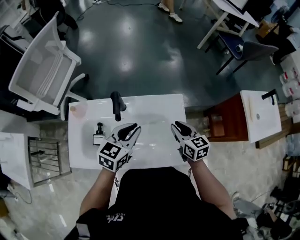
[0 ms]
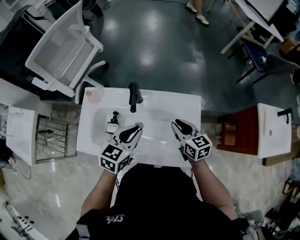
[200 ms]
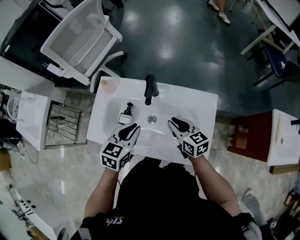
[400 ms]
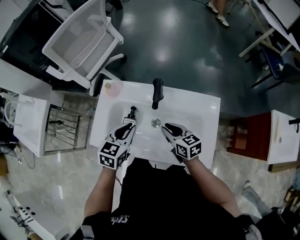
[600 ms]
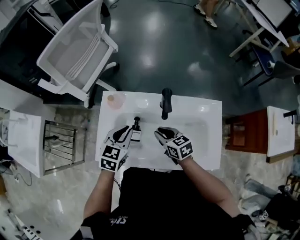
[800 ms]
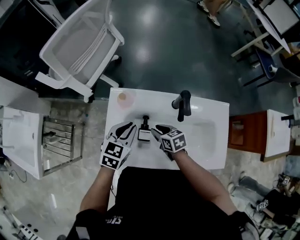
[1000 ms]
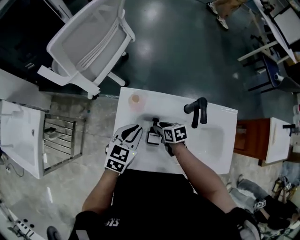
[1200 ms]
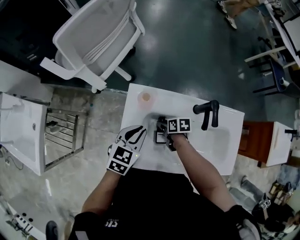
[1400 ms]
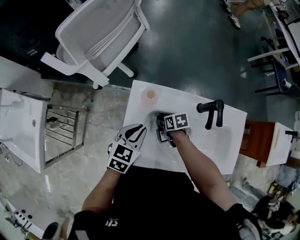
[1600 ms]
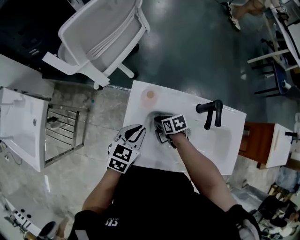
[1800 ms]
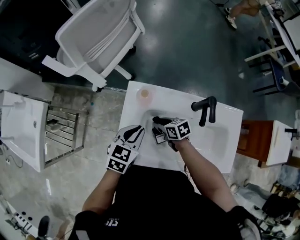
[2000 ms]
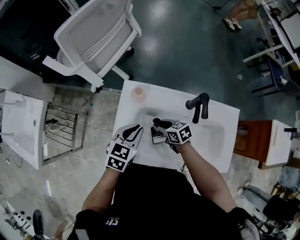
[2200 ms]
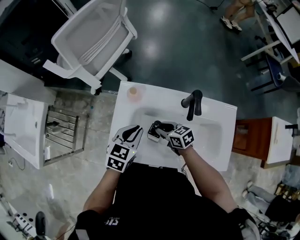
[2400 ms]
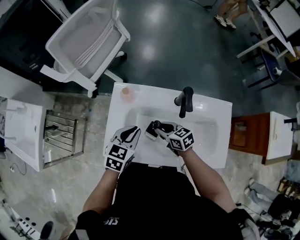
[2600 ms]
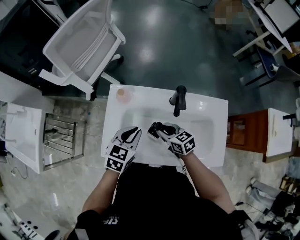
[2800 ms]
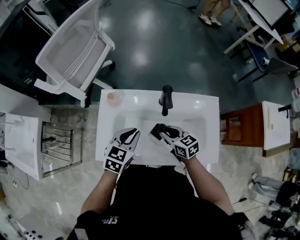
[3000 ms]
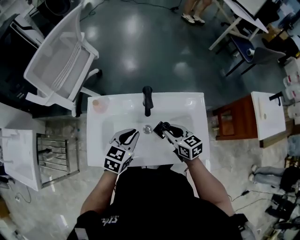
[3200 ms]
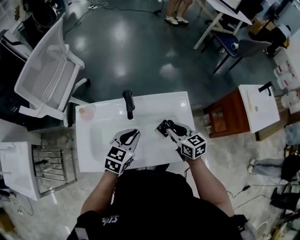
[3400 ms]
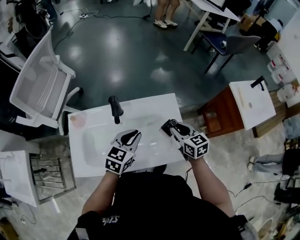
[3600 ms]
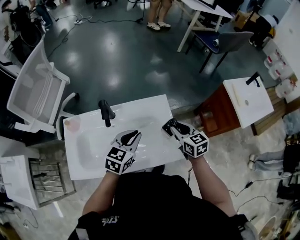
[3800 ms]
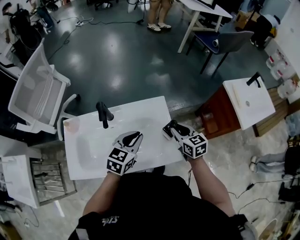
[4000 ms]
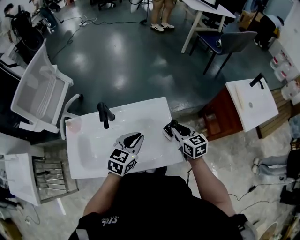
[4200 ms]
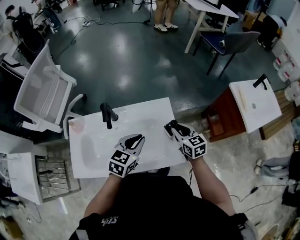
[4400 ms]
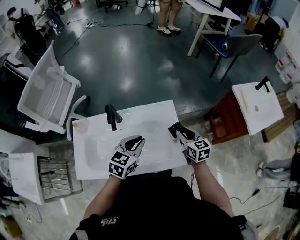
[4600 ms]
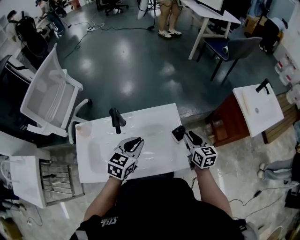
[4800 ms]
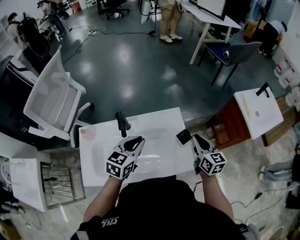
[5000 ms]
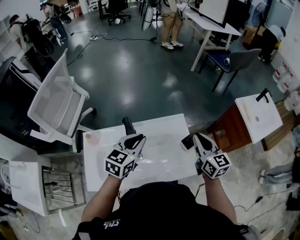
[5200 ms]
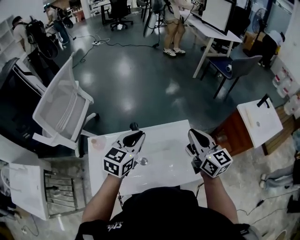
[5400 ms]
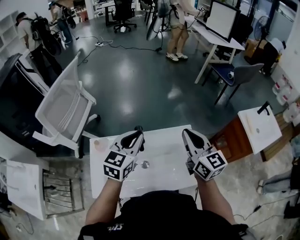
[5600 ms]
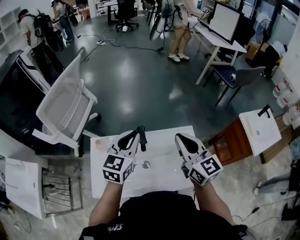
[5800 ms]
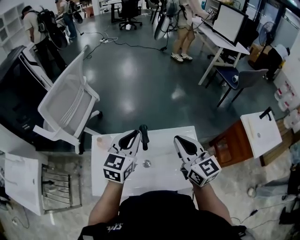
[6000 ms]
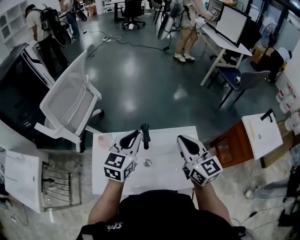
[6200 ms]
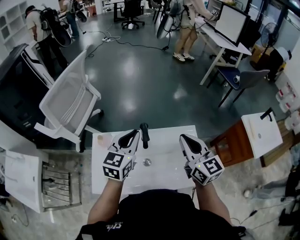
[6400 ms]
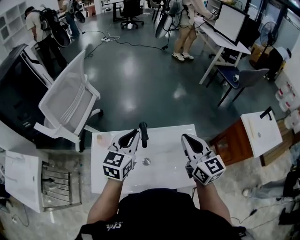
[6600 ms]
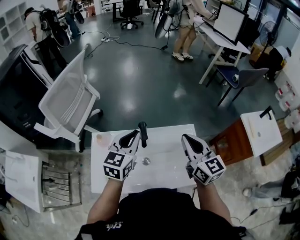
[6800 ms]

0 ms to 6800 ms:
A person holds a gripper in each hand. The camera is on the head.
0 ms to 1400 ms: The left gripper shifts by roughly 40 cm; the right gripper moves some 50 cm, and turns by approximately 40 degrees.
1400 ms to 2800 ms: The left gripper goes approximately 10 cm to the right and backward. The right gripper shifts some 15 cm upward, backward and to the right, and changes its angle by approximately 40 degrees.
2800 ms to 4000 ms: The left gripper changes place by some 35 cm, and turns by roughly 20 degrees. Meanwhile the right gripper ends up approximately 40 cm from where it was, and swivels approximately 40 degrees.
4000 ms to 5400 ms: The left gripper goes some 20 cm to the left and upward. The right gripper goes roughly 25 cm upward and to the left, and turns by roughly 20 degrees.
5400 ms to 6800 ms: Both grippers travel together to the left, some 10 cm.

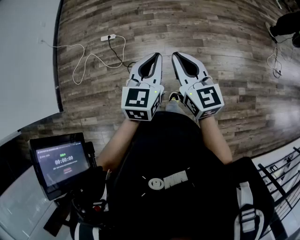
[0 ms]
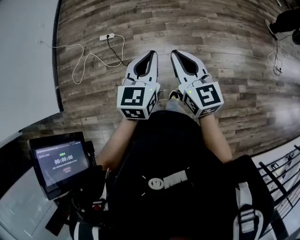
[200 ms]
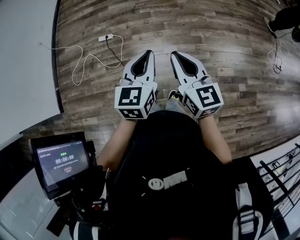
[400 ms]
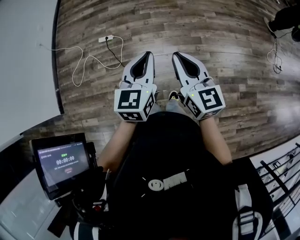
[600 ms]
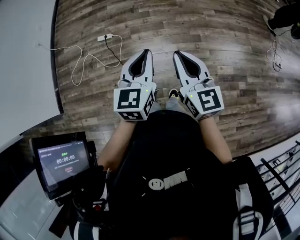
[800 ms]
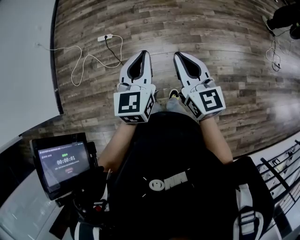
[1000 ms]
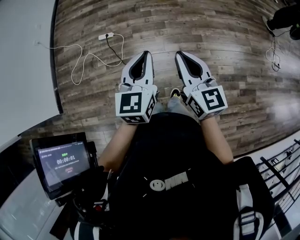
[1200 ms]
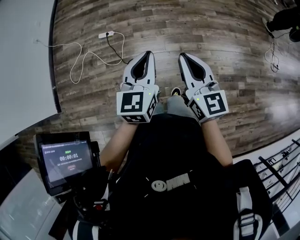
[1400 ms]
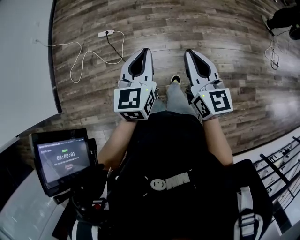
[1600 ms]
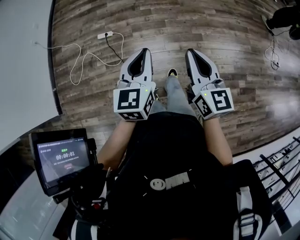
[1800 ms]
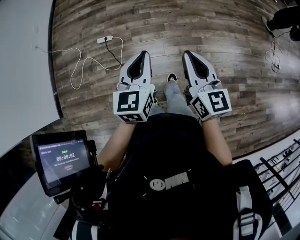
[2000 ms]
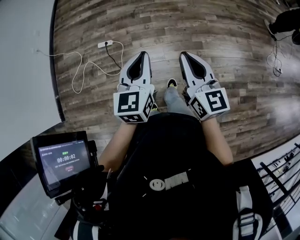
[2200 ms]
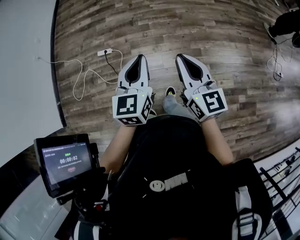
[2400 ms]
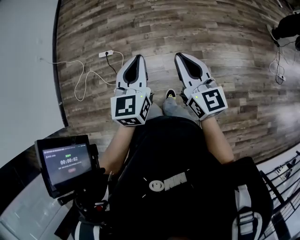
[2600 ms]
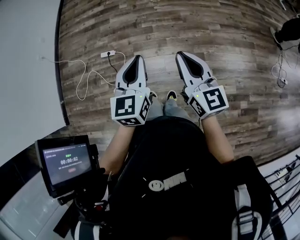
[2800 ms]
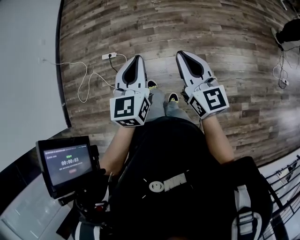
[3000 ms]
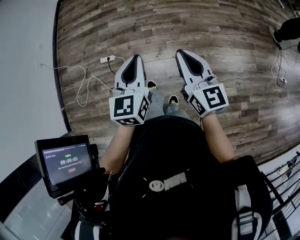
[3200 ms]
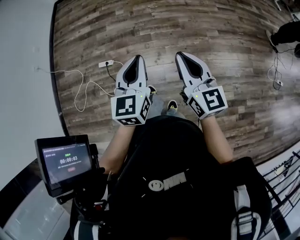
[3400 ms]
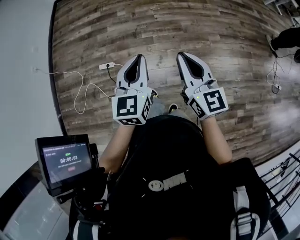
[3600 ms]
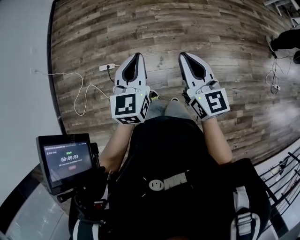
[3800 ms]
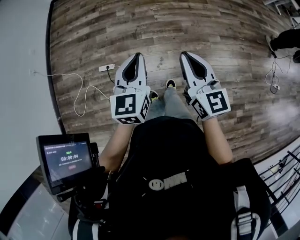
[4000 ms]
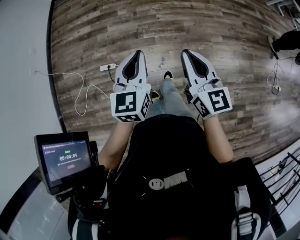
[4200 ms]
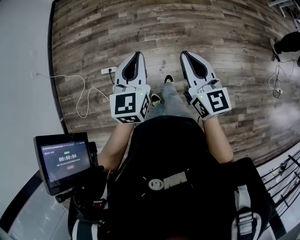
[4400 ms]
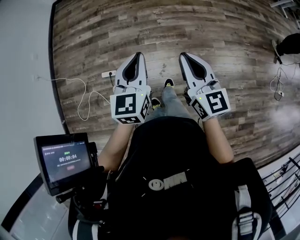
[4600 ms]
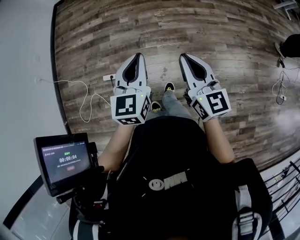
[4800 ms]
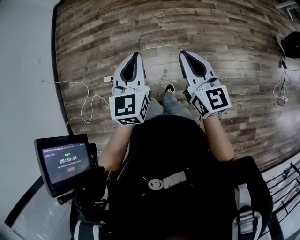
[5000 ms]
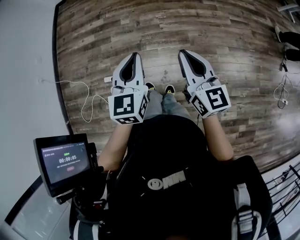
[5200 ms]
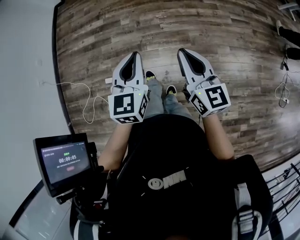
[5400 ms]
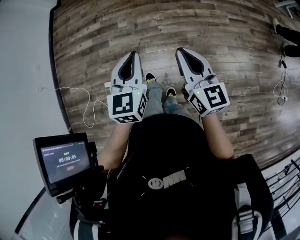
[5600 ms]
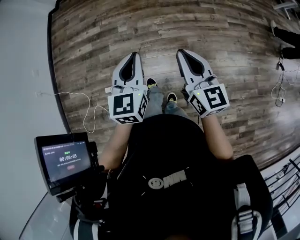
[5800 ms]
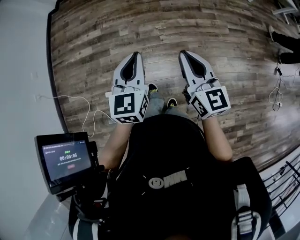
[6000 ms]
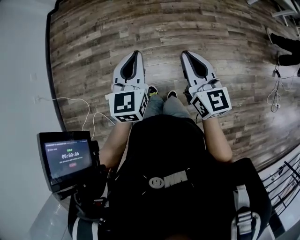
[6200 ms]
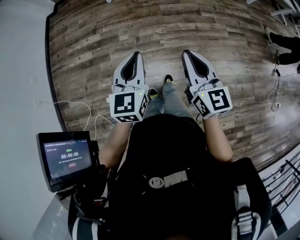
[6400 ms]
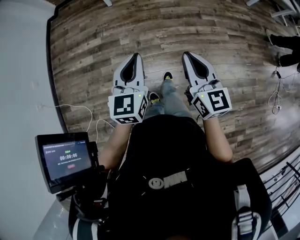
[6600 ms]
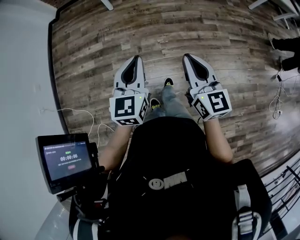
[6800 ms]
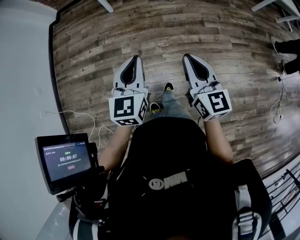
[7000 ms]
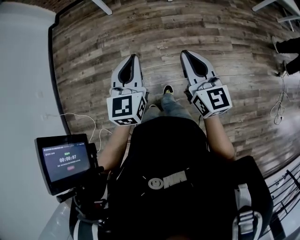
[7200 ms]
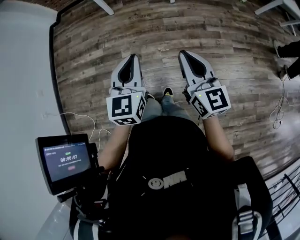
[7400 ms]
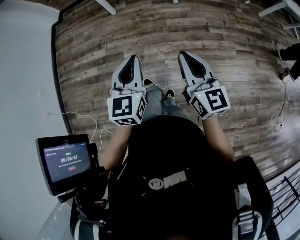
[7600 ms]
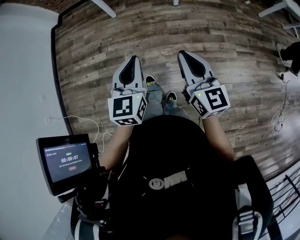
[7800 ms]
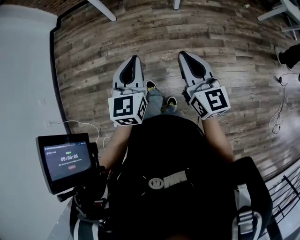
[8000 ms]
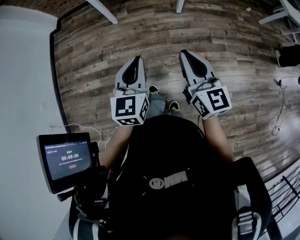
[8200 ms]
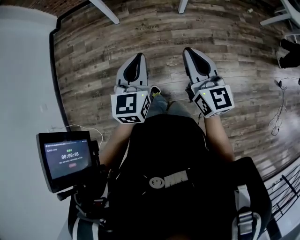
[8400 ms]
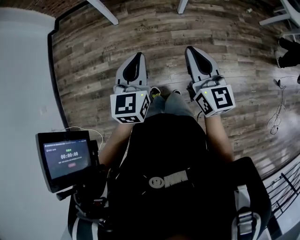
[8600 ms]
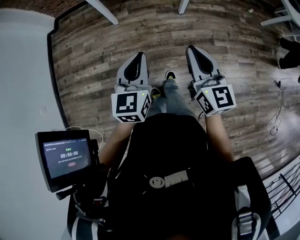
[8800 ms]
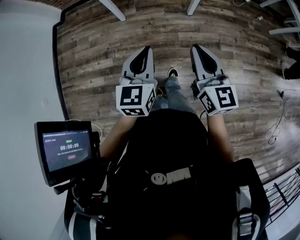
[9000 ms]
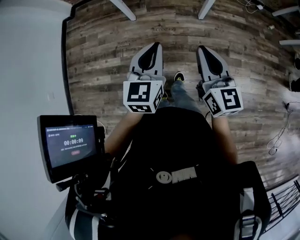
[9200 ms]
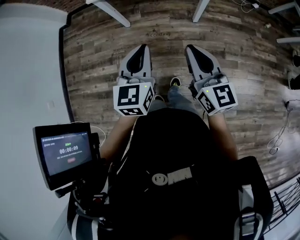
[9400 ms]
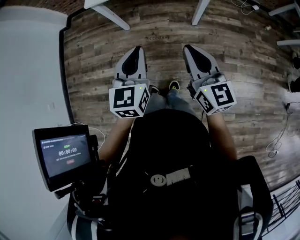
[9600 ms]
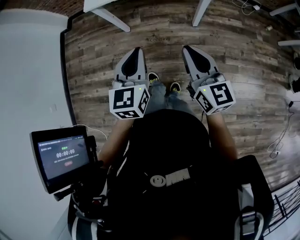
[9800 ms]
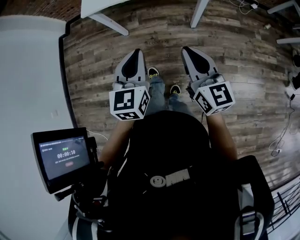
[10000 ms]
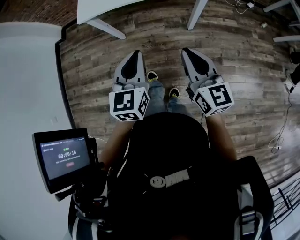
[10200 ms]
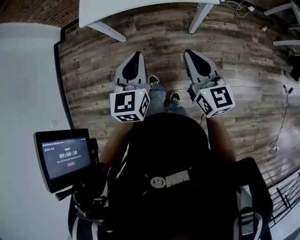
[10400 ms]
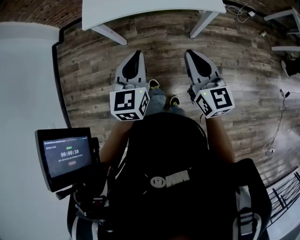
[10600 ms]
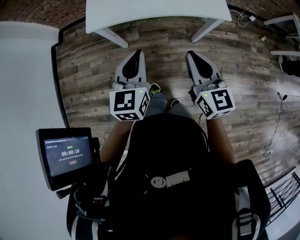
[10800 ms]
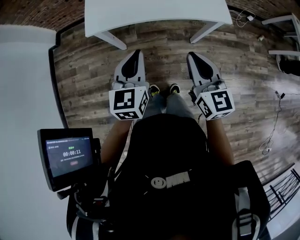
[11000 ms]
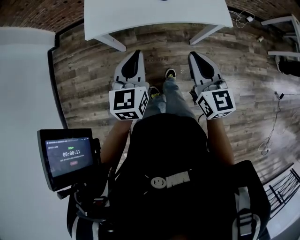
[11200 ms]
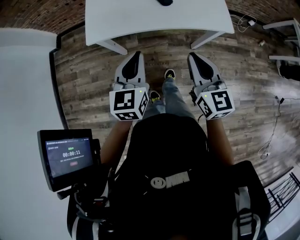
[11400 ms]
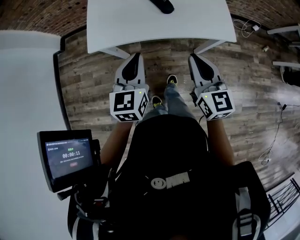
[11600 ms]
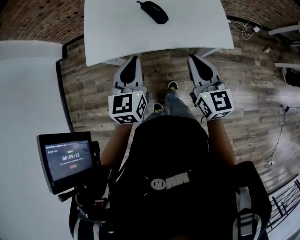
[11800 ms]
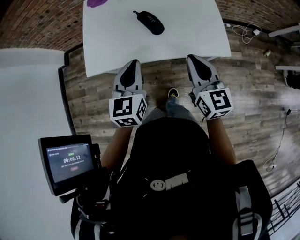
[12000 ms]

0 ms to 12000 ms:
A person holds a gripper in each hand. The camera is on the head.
0 ms to 1600 ms: The left gripper moves to the left, approximately 10 cm.
1600 ms to 3000 ms: Both grippers travel together forward and to the right, roughly 25 cm.
3000 ms to 4400 ms: Both grippers travel together forward, approximately 25 cm.
4400 ms to 6000 ms: The grippers both shift forward by some 30 cm.
6000 ms to 7600 ms: The two grippers go roughly 25 cm forward.
7600 ms to 9000 ms: The grippers both shift forward by approximately 25 cm.
9000 ms to 10400 ms: Both grippers travel together forward, some 20 cm.
10400 ms to 12000 ms: Both grippers travel together forward, approximately 30 cm.

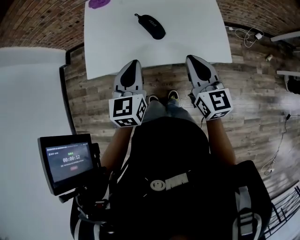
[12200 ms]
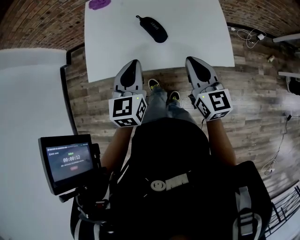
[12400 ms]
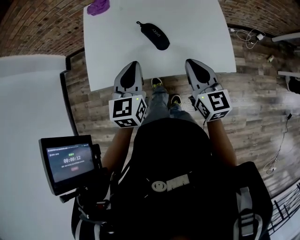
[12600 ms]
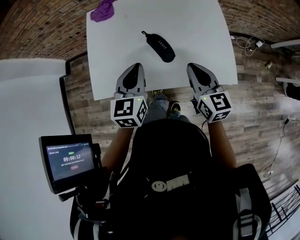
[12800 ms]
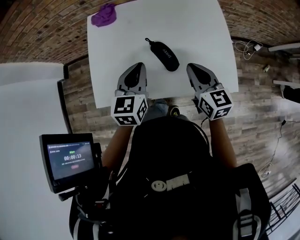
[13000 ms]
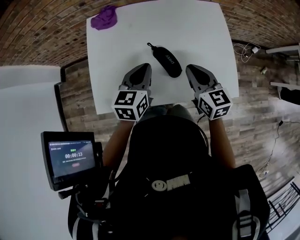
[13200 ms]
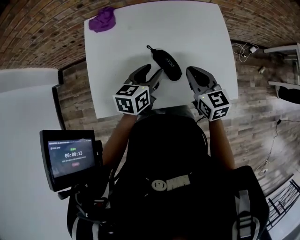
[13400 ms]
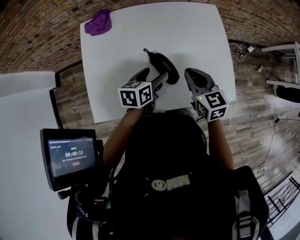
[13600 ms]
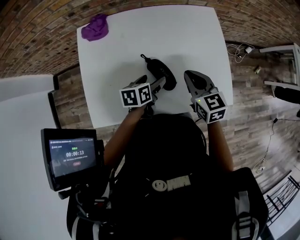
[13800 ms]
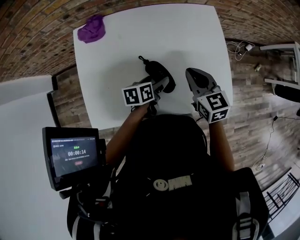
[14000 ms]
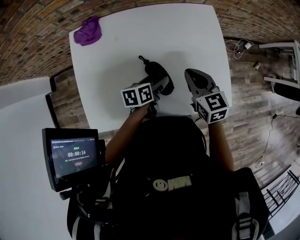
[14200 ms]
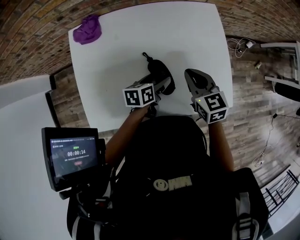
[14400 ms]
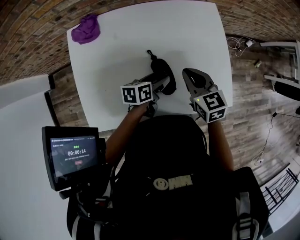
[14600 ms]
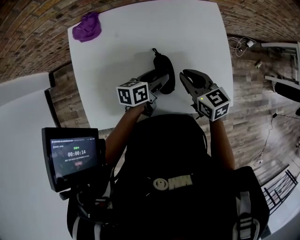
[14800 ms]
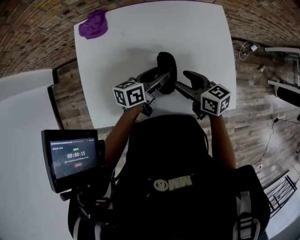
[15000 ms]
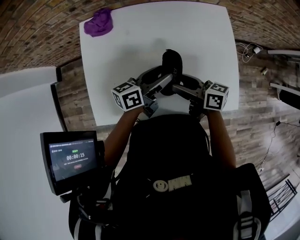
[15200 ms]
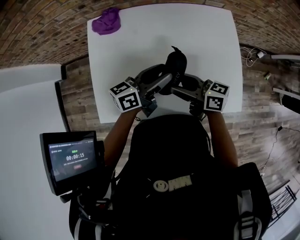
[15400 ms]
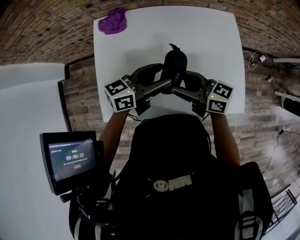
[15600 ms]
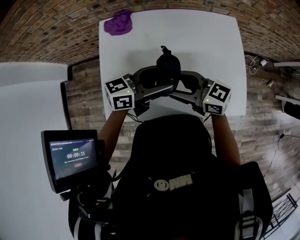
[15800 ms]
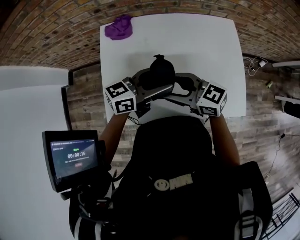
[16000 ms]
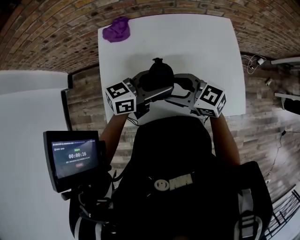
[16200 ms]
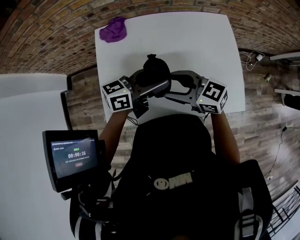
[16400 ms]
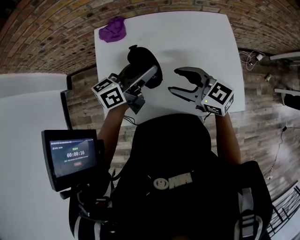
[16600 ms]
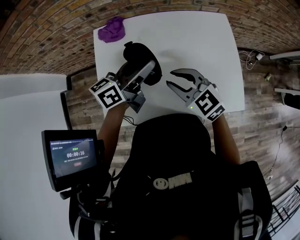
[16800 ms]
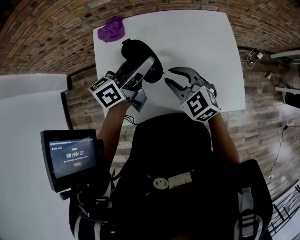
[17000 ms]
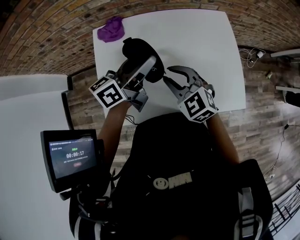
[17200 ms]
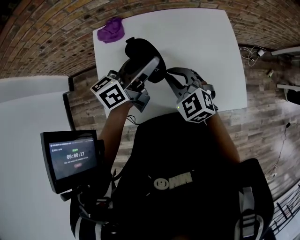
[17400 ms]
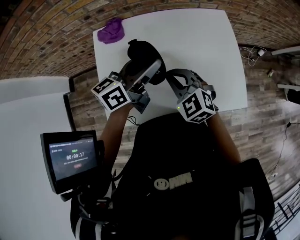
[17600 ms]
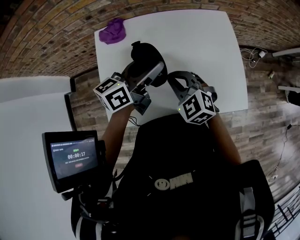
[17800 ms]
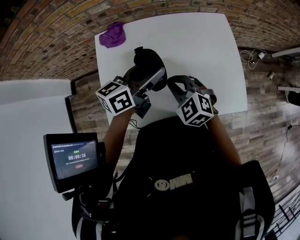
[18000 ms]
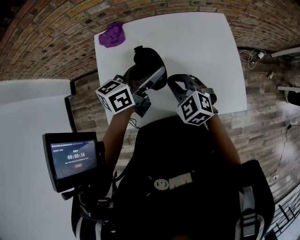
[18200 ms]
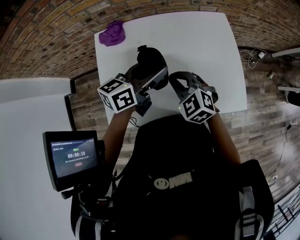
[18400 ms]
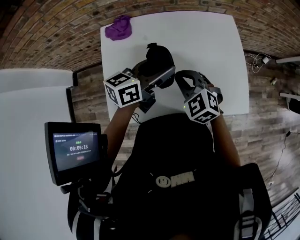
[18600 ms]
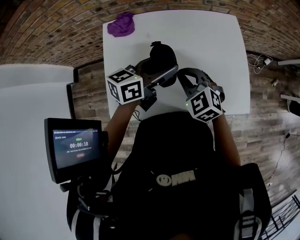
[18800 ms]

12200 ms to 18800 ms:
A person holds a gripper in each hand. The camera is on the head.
12200 ms to 13800 ms: The right gripper goes about 25 cm forward, and changes its angle by some 20 degrees, while the left gripper shifts about 30 cm forward and downward, changes its angle by roughly 50 degrees, and opens up.
13800 ms to 15400 ms: The right gripper goes about 10 cm to the left, turns by approximately 50 degrees, and opens. The left gripper travels upward by roughly 15 cm, tilts its fingers some 40 degrees upward, and closes up.
15400 ms to 17200 ms: The left gripper goes about 10 cm upward; the right gripper ends up about 5 cm from where it was, rolls counterclockwise, seen from behind, by approximately 60 degrees, and closes its fingers.
17200 ms to 18800 ms: The left gripper ends up some 5 cm from where it was. Meanwhile the right gripper closes its fingers.
